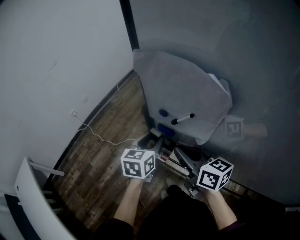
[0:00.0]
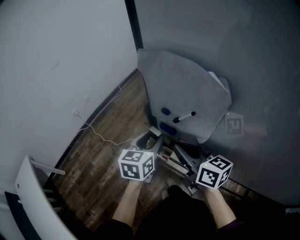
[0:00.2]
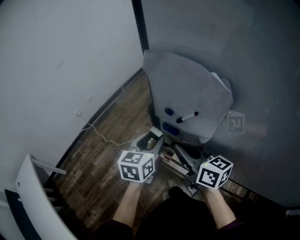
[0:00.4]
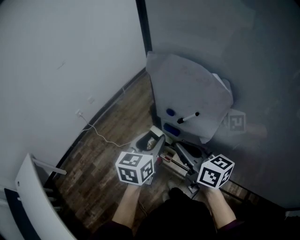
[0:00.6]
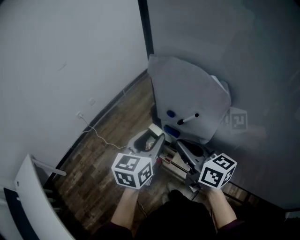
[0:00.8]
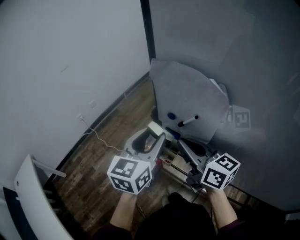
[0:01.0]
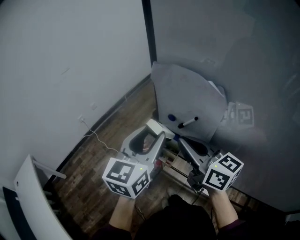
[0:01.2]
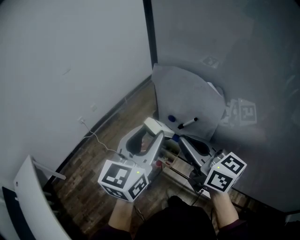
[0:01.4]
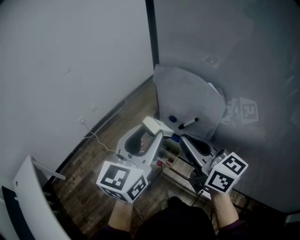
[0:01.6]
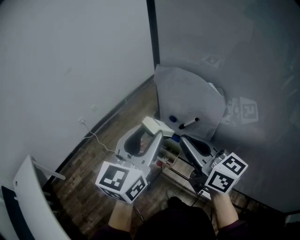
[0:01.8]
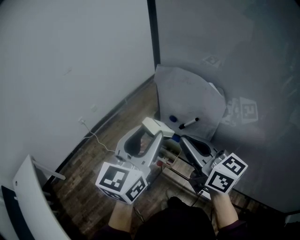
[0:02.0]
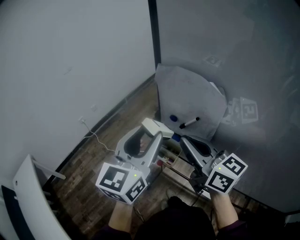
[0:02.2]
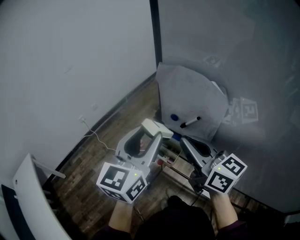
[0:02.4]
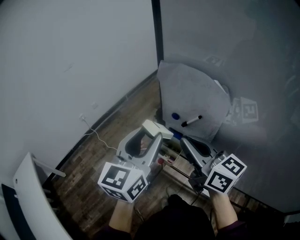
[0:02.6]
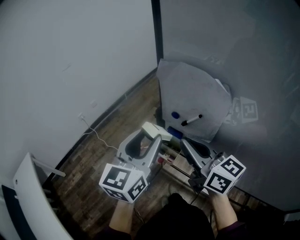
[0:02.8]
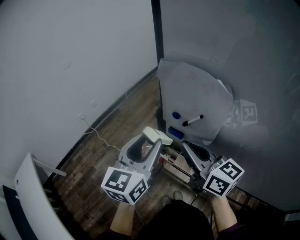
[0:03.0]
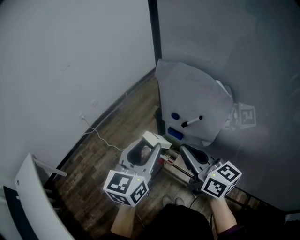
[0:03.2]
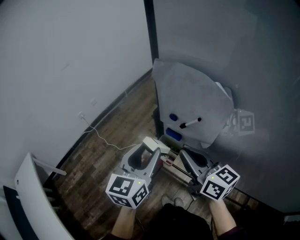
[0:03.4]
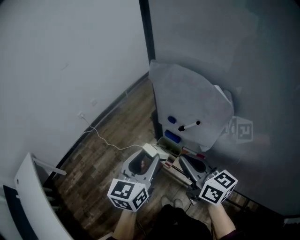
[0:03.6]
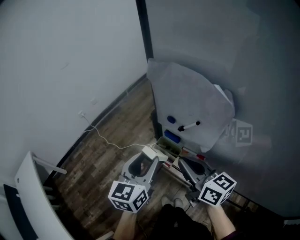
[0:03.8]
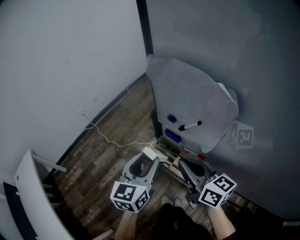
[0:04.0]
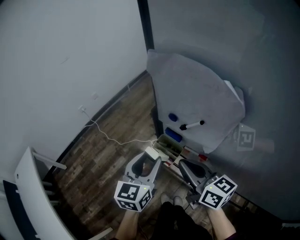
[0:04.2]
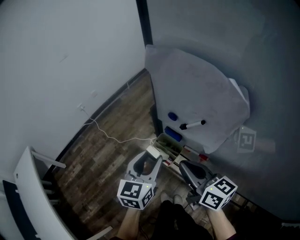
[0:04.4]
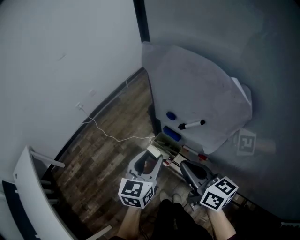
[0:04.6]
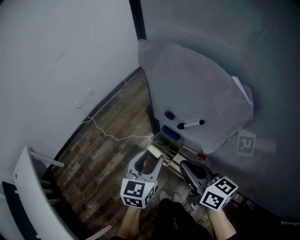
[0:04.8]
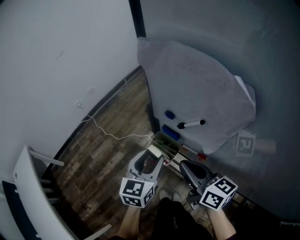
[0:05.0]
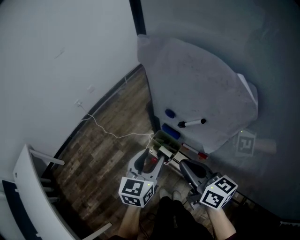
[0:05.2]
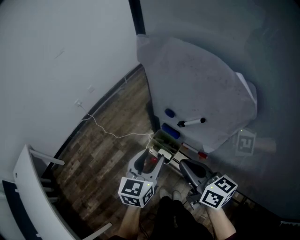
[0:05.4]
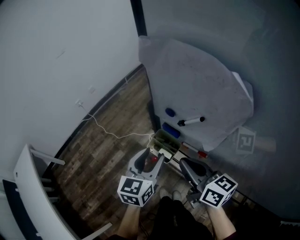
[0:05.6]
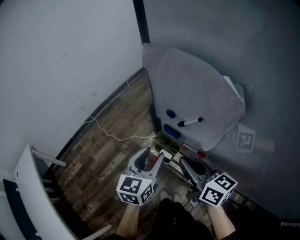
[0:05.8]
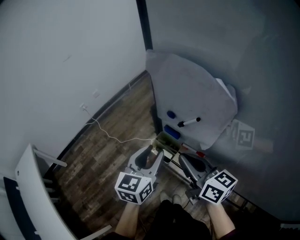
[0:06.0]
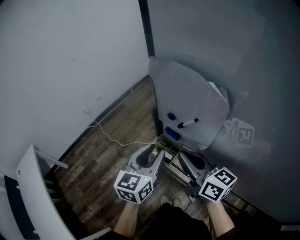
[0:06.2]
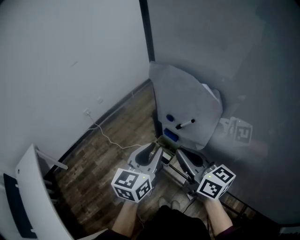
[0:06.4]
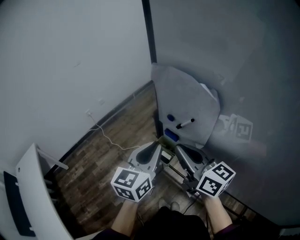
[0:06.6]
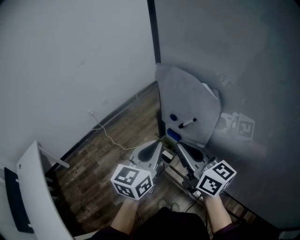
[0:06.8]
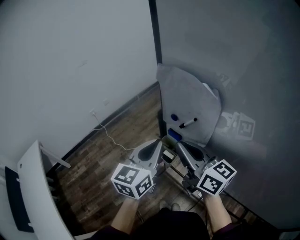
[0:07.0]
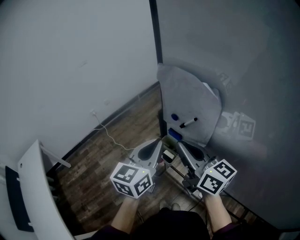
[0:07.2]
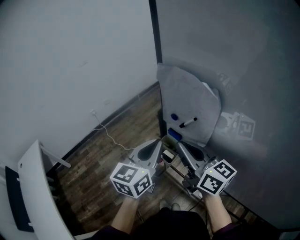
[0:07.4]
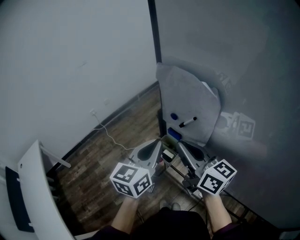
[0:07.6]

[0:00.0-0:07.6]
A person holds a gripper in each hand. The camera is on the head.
0:00.0 to 0:01.6: The right gripper moves upward, roughly 15 cm. Meanwhile the left gripper shifts roughly 25 cm upward, and turns by some 30 degrees.
0:01.6 to 0:03.0: The left gripper goes about 5 cm downward.
0:03.0 to 0:04.6: Both grippers travel together downward, about 15 cm.
0:04.6 to 0:06.0: The left gripper heads upward, covering about 5 cm.
0:06.0 to 0:07.6: Both grippers travel together upward, about 10 cm. The left gripper closes up.

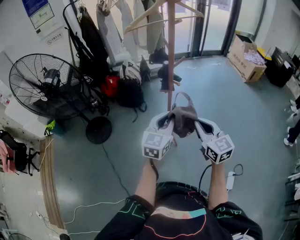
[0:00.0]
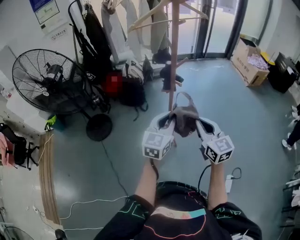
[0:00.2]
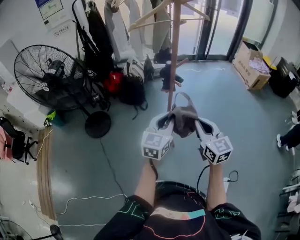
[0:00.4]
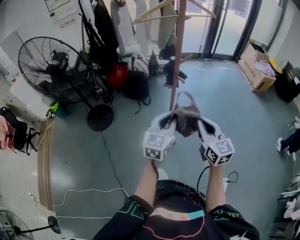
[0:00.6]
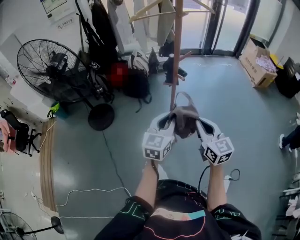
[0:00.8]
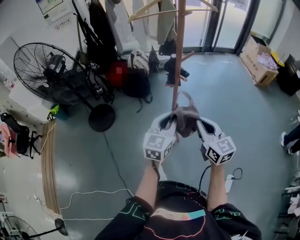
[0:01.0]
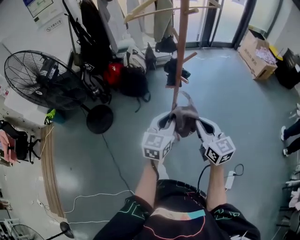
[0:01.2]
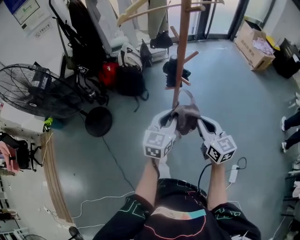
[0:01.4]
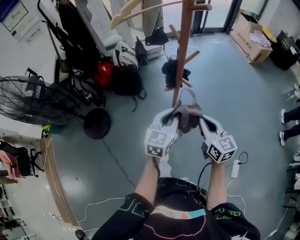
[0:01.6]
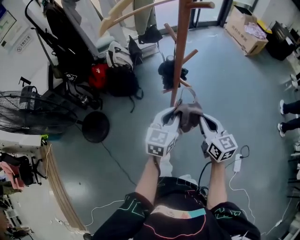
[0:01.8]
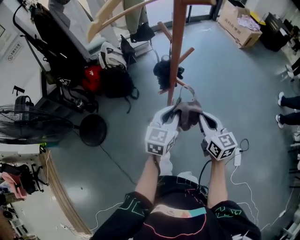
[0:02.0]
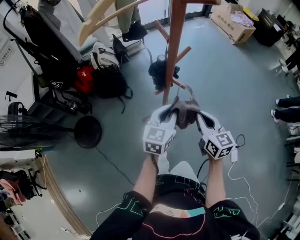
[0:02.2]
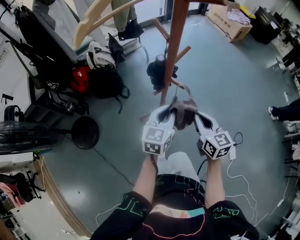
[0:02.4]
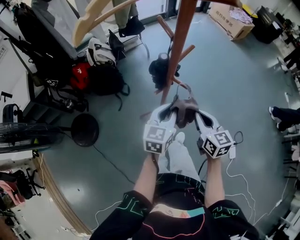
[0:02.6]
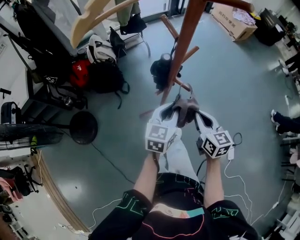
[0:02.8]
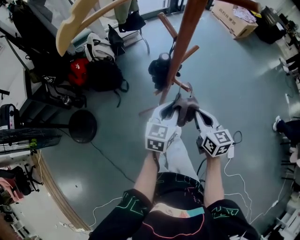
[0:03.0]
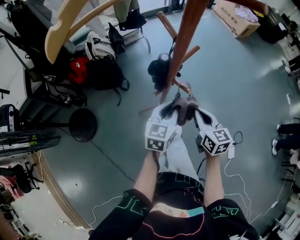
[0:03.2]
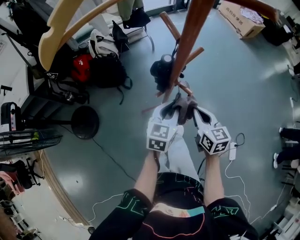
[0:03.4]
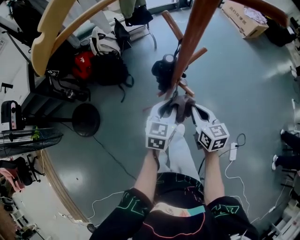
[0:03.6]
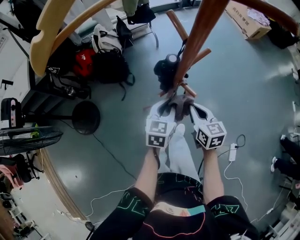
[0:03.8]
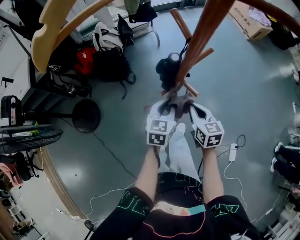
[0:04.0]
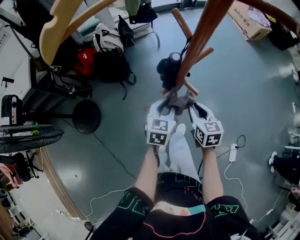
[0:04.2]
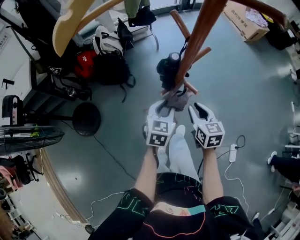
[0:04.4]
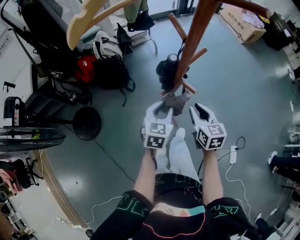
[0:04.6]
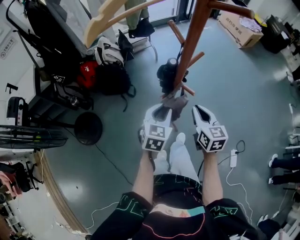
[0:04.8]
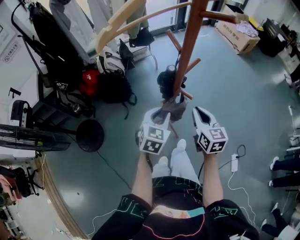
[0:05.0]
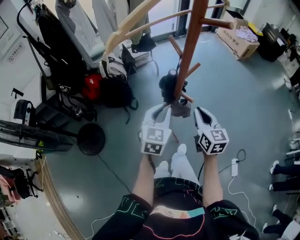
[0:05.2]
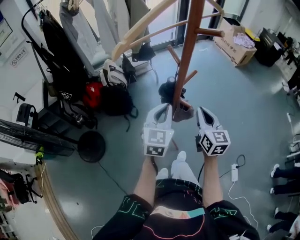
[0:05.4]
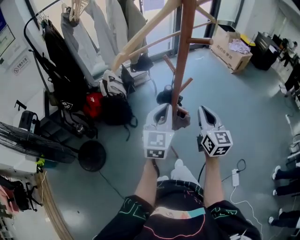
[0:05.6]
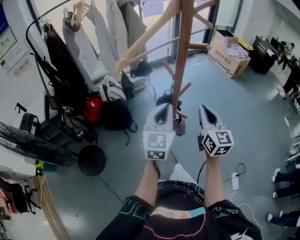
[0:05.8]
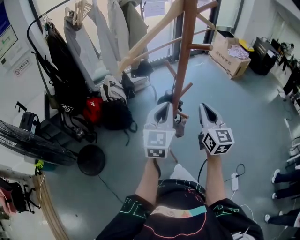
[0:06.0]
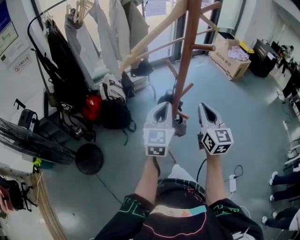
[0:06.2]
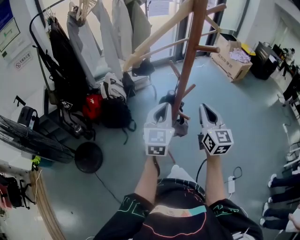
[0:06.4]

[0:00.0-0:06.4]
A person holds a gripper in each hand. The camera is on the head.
0:00.0 to 0:01.6: The two grippers go about 15 cm forward and downward.
0:01.6 to 0:03.2: The grippers both shift forward and downward by about 10 cm.
0:03.2 to 0:04.8: The left gripper heads to the left, covering about 5 cm.
0:04.8 to 0:06.4: Both grippers travel together upward, some 20 cm. The left gripper rotates about 30 degrees, and closes its fingers, while the right gripper swivels some 30 degrees.

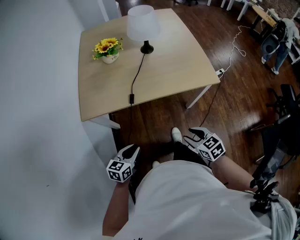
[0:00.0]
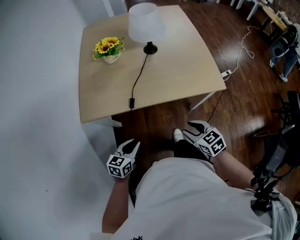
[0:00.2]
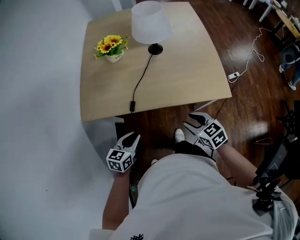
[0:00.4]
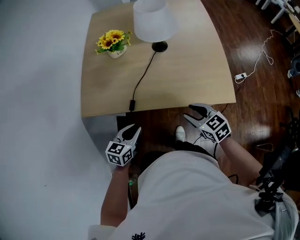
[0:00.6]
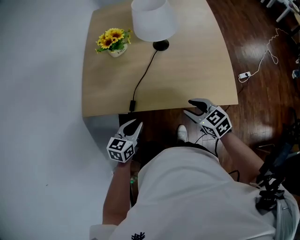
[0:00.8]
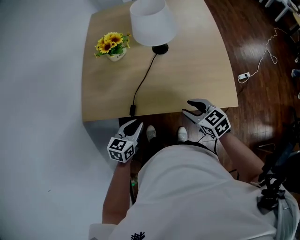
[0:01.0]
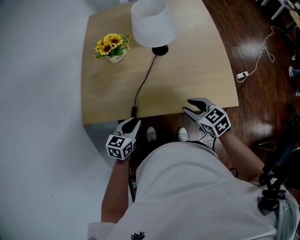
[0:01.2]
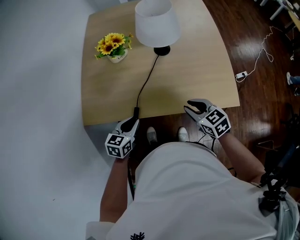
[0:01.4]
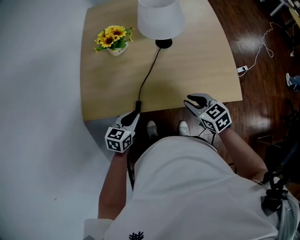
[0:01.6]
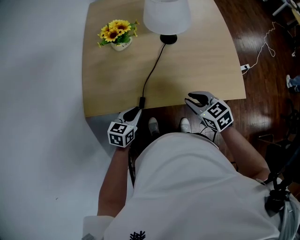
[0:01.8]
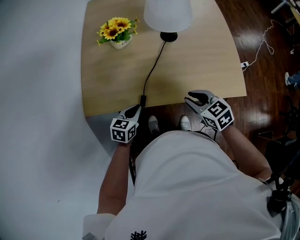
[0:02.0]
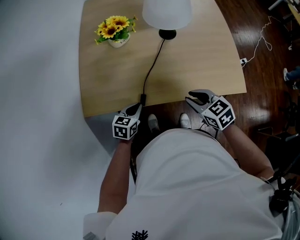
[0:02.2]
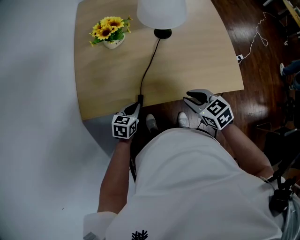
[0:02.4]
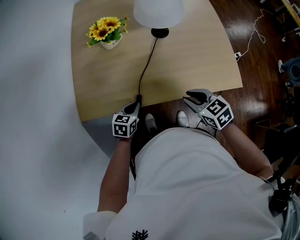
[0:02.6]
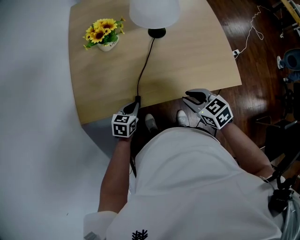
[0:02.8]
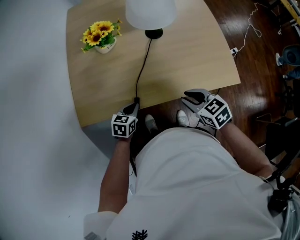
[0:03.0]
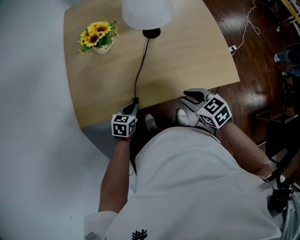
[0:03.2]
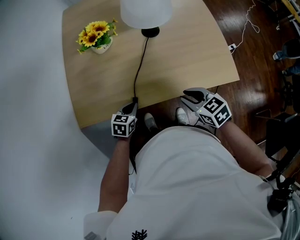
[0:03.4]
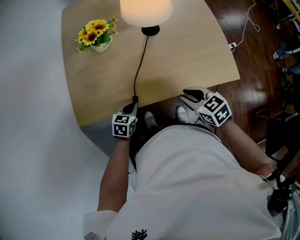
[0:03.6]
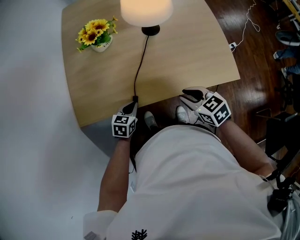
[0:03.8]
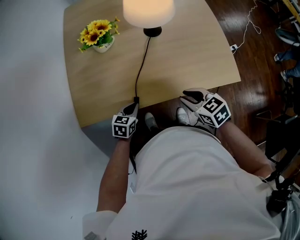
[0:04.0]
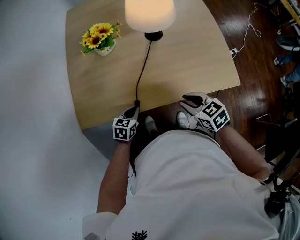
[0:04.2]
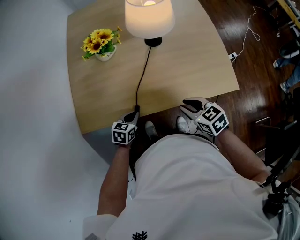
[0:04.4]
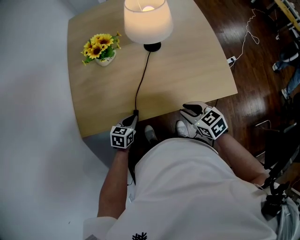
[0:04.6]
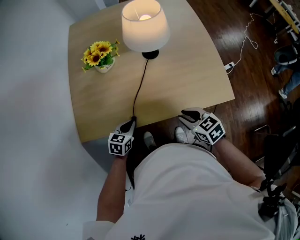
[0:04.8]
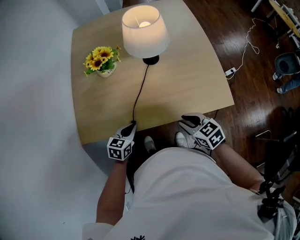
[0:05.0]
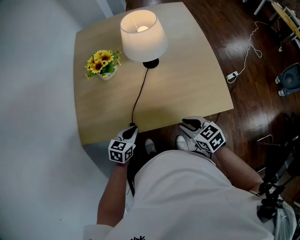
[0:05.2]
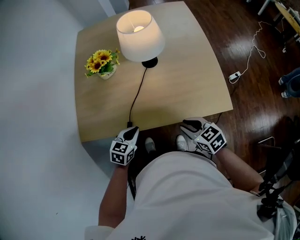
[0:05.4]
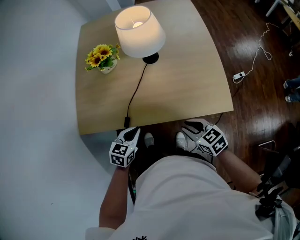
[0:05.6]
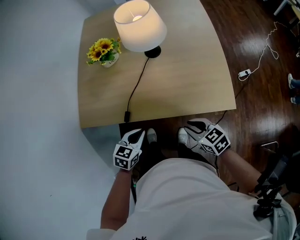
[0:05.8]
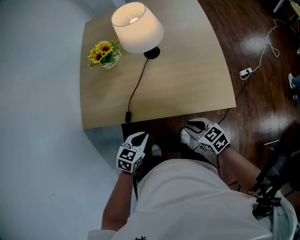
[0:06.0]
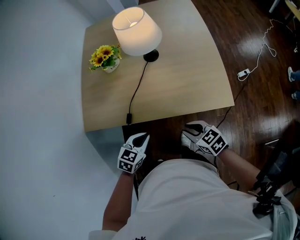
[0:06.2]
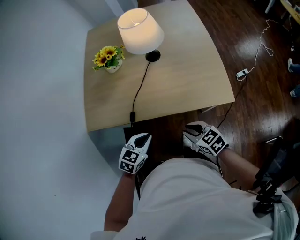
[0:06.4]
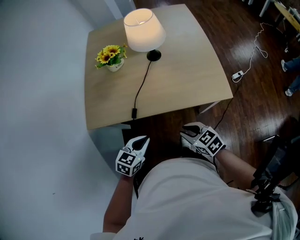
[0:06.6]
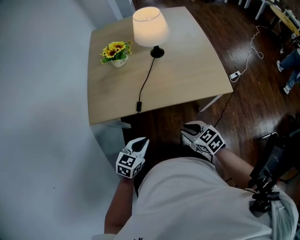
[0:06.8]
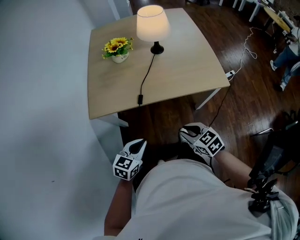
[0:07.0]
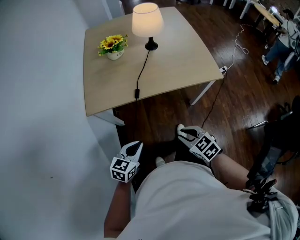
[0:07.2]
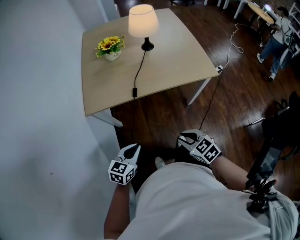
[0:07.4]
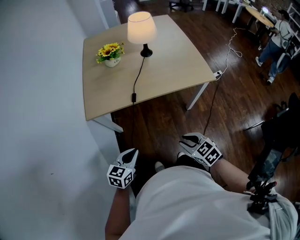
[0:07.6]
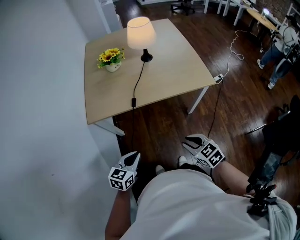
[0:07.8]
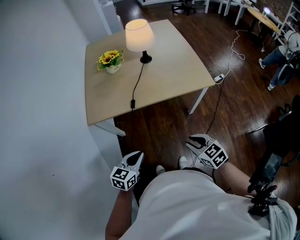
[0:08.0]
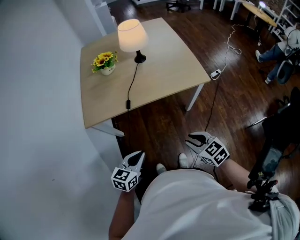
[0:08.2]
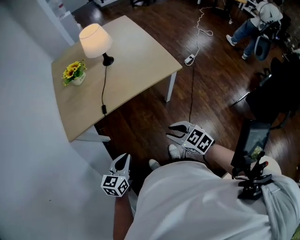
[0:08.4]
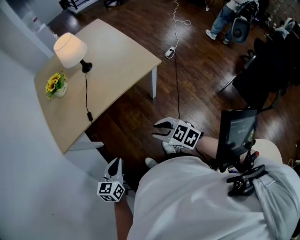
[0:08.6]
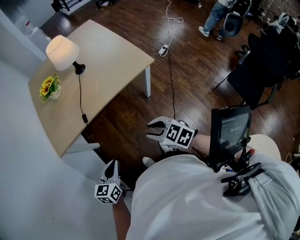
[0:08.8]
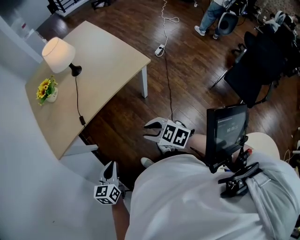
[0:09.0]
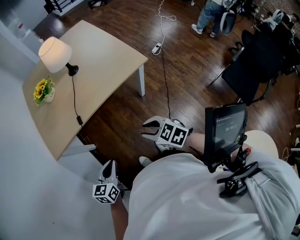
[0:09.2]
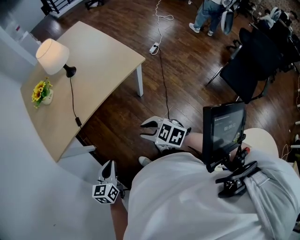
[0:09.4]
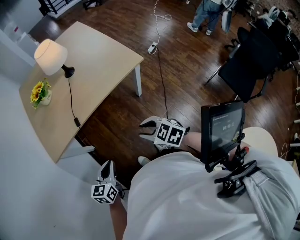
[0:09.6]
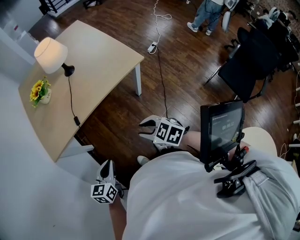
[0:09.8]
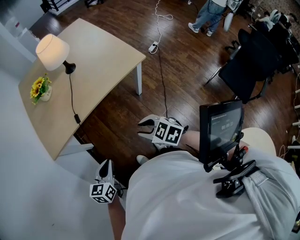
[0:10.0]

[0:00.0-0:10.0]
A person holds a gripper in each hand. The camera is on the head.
0:00.0 to 0:01.4: Both grippers travel together forward, approximately 25 cm.
0:01.4 to 0:02.8: The left gripper travels downward by approximately 10 cm.
0:02.8 to 0:04.2: The grippers move only a little.
0:04.2 to 0:05.8: The left gripper heads to the right, upward and backward, covering some 15 cm, while the right gripper shifts some 10 cm to the right and backward.
0:05.8 to 0:07.2: The two grippers go about 25 cm backward and to the left.
0:07.2 to 0:08.6: The two grippers go approximately 10 cm to the right.
0:08.6 to 0:10.0: There are only small adjustments of the grippers.
